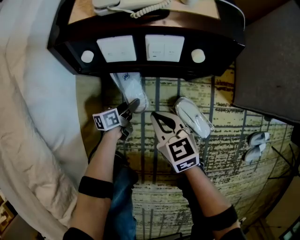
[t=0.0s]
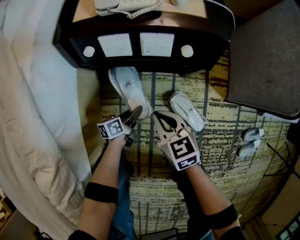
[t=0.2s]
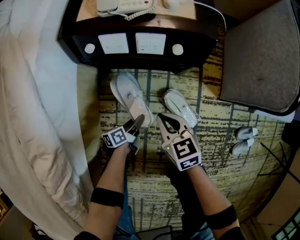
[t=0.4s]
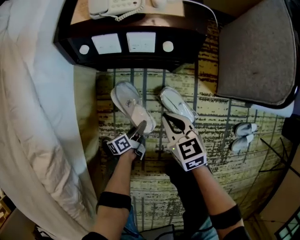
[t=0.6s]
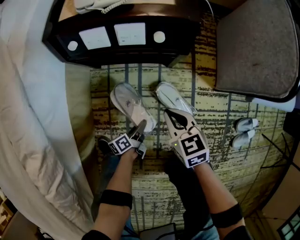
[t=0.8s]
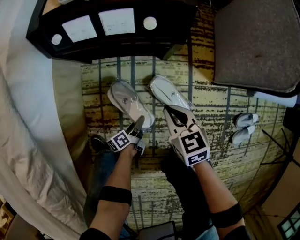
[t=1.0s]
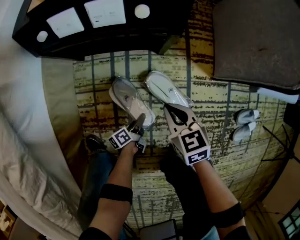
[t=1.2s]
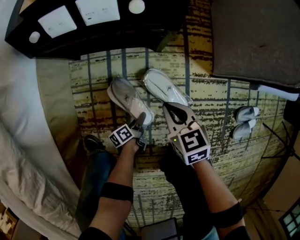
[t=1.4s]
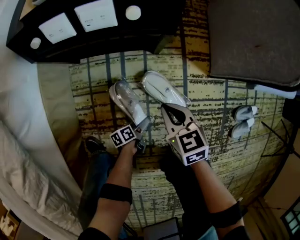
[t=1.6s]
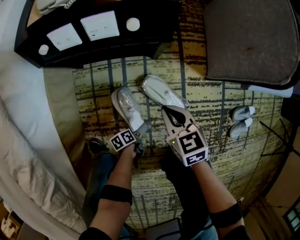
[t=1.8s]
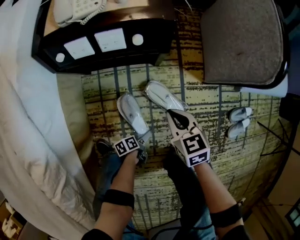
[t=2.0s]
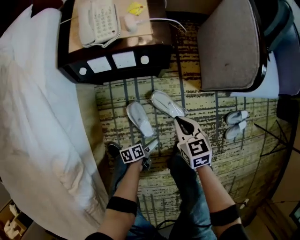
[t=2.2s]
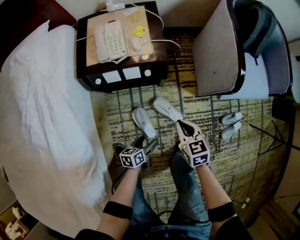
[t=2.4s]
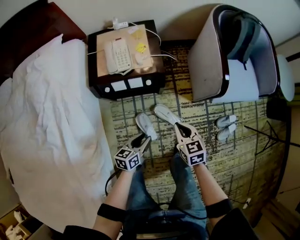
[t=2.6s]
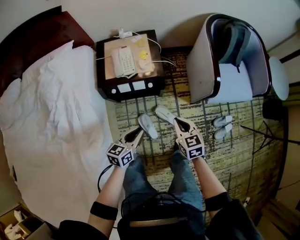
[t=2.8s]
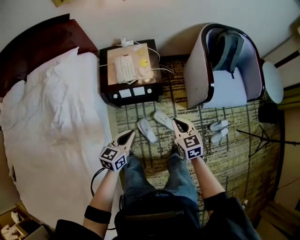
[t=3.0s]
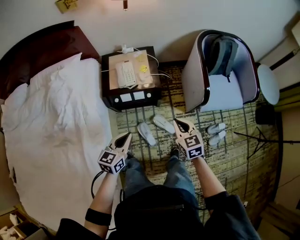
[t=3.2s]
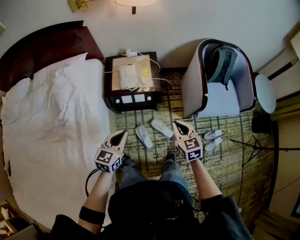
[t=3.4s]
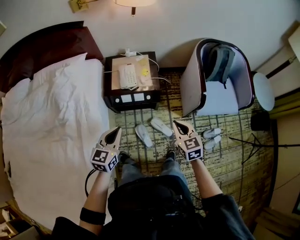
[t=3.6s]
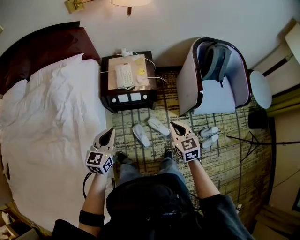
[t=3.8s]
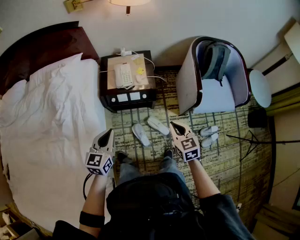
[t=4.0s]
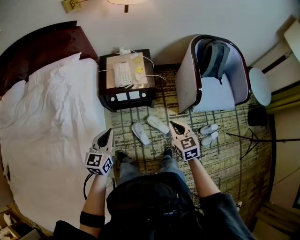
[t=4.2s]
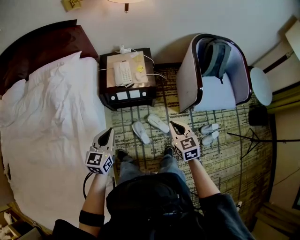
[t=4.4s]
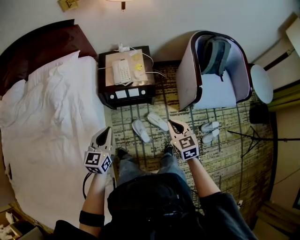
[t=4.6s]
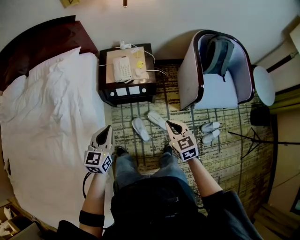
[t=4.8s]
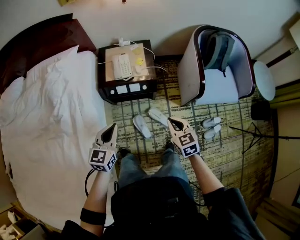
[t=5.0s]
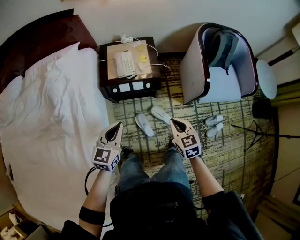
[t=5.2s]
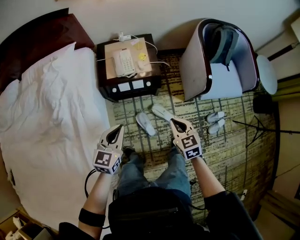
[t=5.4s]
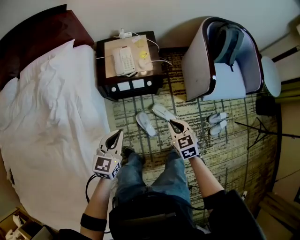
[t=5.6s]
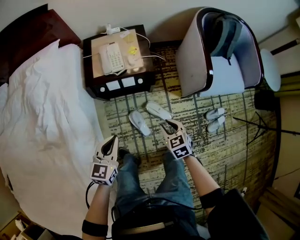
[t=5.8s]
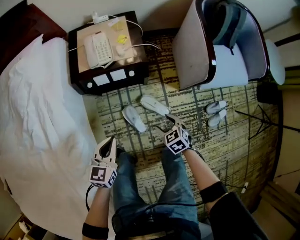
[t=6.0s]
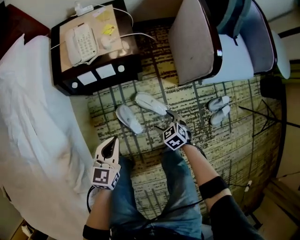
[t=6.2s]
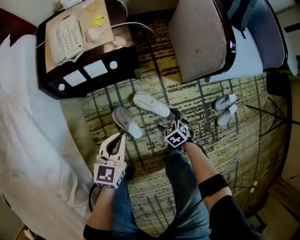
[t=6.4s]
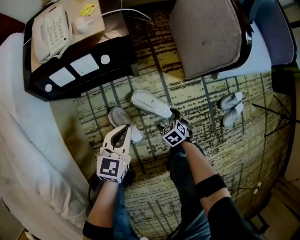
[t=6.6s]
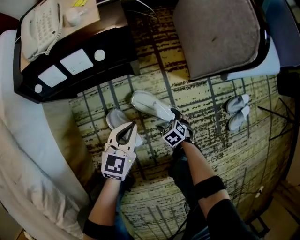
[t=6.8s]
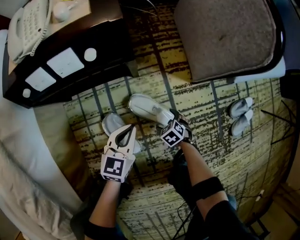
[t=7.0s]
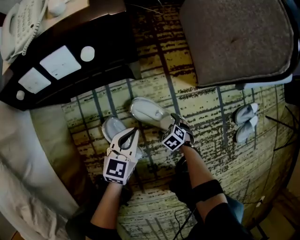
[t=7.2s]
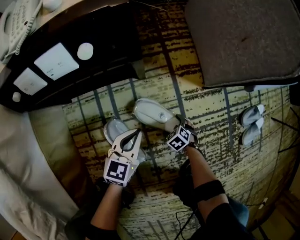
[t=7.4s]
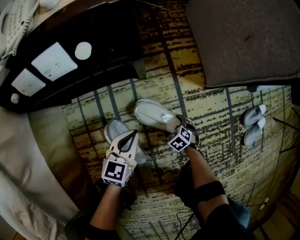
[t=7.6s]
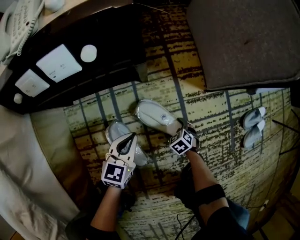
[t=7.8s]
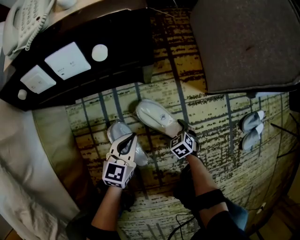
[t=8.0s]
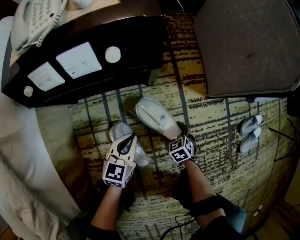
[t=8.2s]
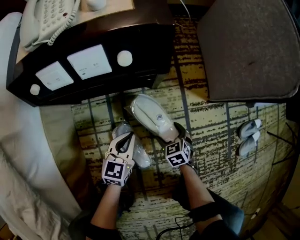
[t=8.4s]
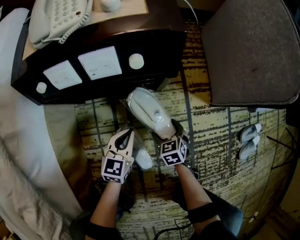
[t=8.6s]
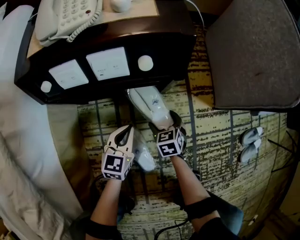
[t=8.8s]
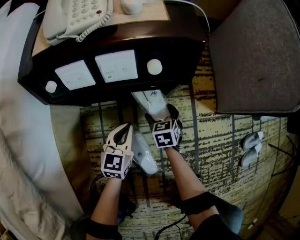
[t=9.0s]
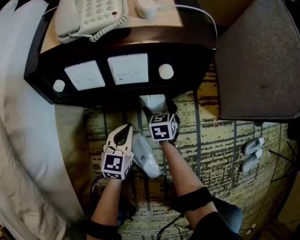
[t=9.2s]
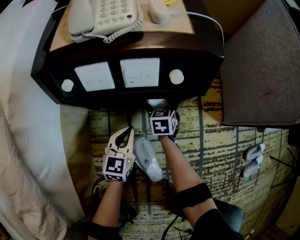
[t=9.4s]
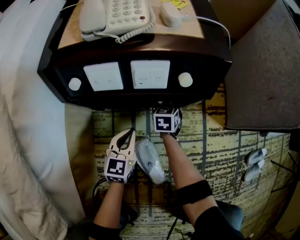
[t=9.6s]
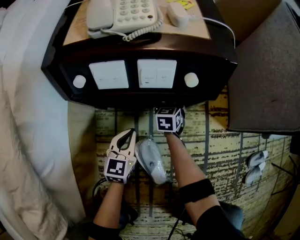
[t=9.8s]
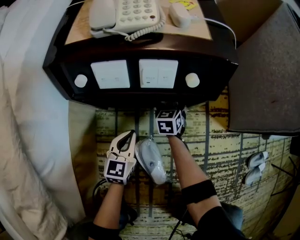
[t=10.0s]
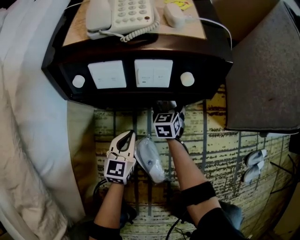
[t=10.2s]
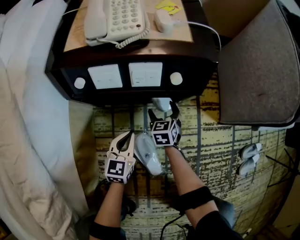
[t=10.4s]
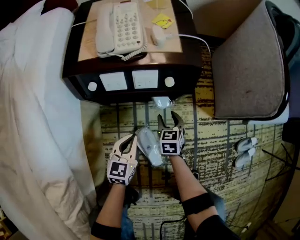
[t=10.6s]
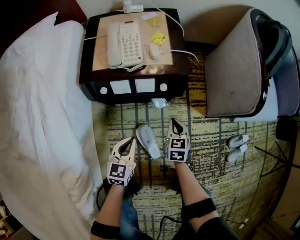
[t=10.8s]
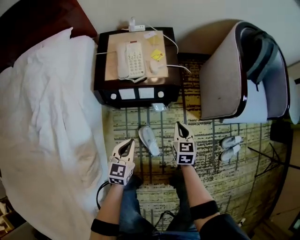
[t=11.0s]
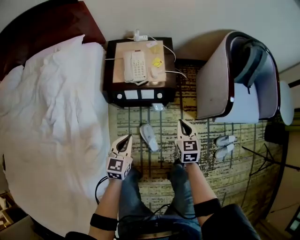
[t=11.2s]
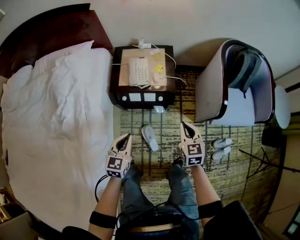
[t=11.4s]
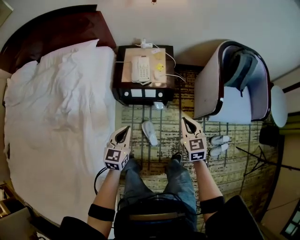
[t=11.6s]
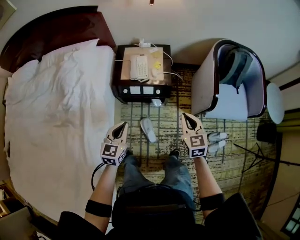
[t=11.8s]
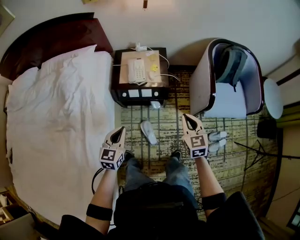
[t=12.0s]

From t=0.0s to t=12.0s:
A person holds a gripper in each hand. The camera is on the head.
From t=0.0s to t=1.6s: The right gripper moves to the right and backward, roughly 20 cm. The left gripper goes approximately 30 cm backward, to the right and downward, rotates about 30 degrees, and opens up.
From t=1.6s to t=3.0s: The two grippers go about 70 cm upward. The left gripper twists about 60 degrees clockwise, seen from behind, and closes up.
From t=3.0s to t=4.4s: The right gripper goes roughly 10 cm upward and backward. Meanwhile the left gripper heads upward and to the left, covering about 15 cm.
From t=4.4s to t=6.0s: The two grippers go roughly 30 cm downward. The right gripper turns by about 20 degrees, and opens.
From t=6.0s to t=7.6s: Both grippers travel together downward, about 60 cm. The right gripper opens.
From t=7.6s to t=9.0s: The right gripper ends up approximately 30 cm from where it was, and swivels about 30 degrees; the left gripper changes place by approximately 15 cm.
From t=9.0s to t=10.4s: The left gripper changes place by roughly 5 cm. Meanwhile the right gripper shifts about 5 cm to the left.
From t=10.4s to t=12.0s: Both grippers travel together upward, approximately 70 cm. The right gripper closes up.

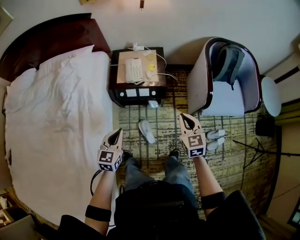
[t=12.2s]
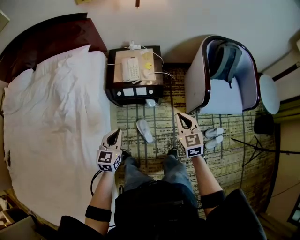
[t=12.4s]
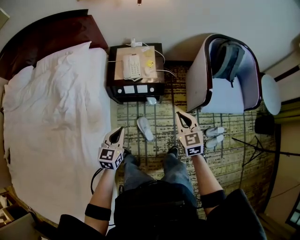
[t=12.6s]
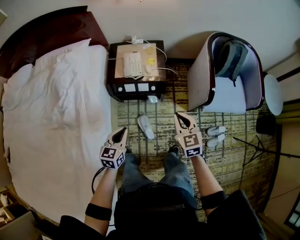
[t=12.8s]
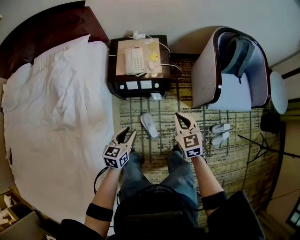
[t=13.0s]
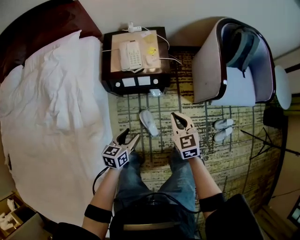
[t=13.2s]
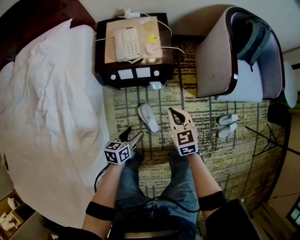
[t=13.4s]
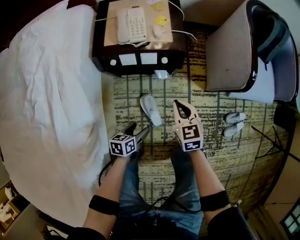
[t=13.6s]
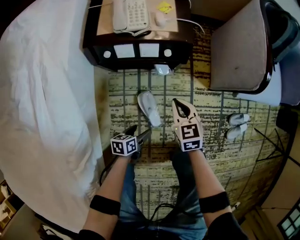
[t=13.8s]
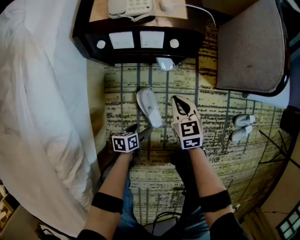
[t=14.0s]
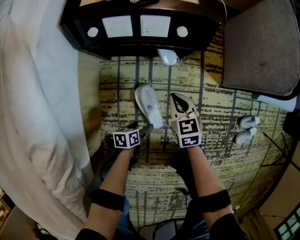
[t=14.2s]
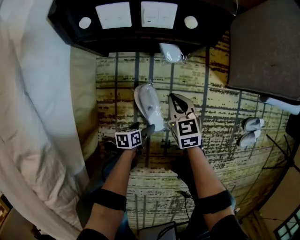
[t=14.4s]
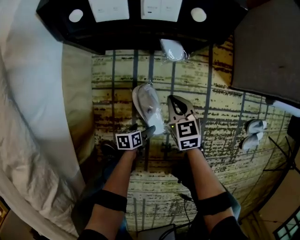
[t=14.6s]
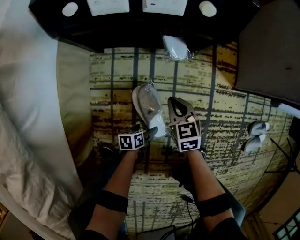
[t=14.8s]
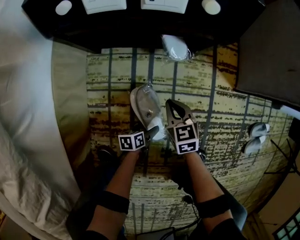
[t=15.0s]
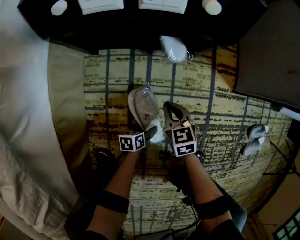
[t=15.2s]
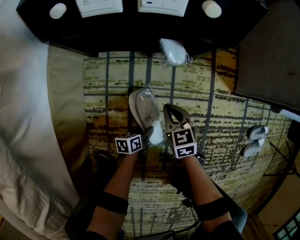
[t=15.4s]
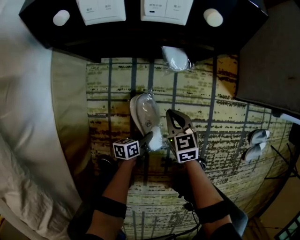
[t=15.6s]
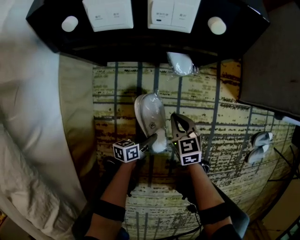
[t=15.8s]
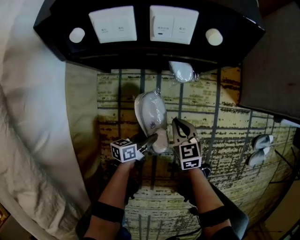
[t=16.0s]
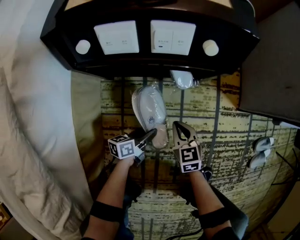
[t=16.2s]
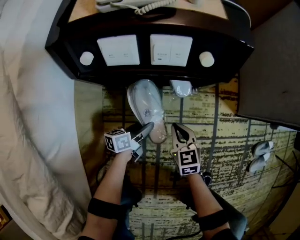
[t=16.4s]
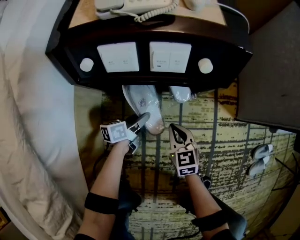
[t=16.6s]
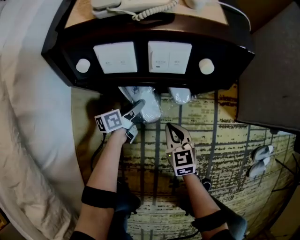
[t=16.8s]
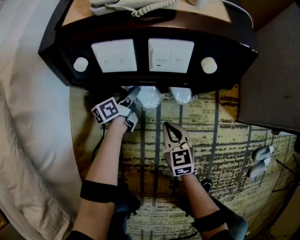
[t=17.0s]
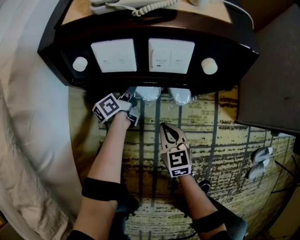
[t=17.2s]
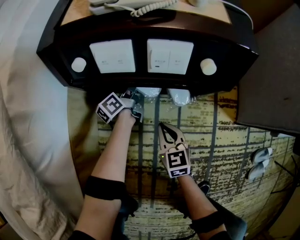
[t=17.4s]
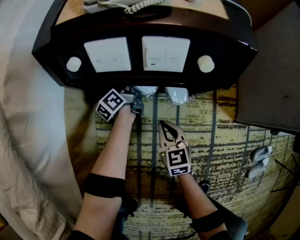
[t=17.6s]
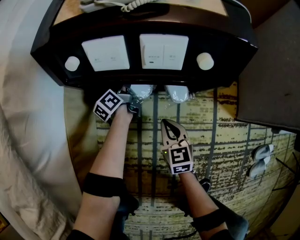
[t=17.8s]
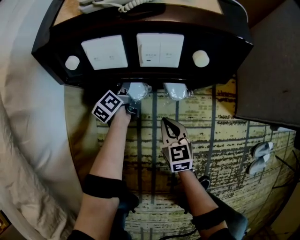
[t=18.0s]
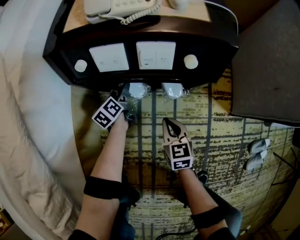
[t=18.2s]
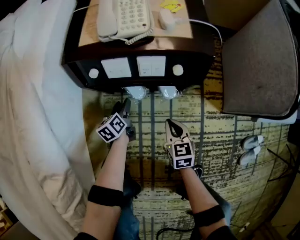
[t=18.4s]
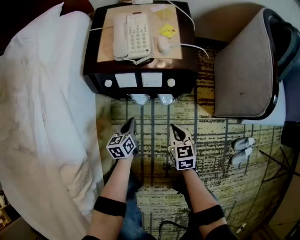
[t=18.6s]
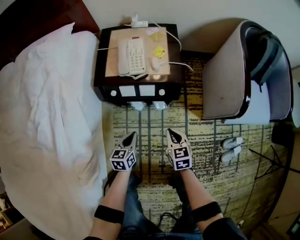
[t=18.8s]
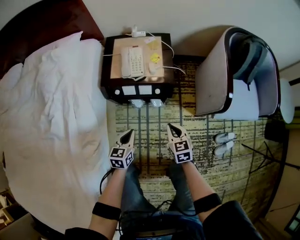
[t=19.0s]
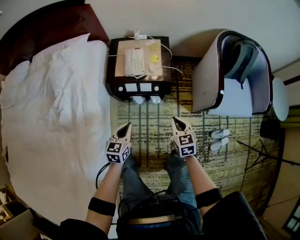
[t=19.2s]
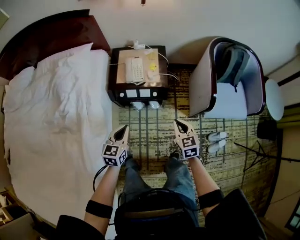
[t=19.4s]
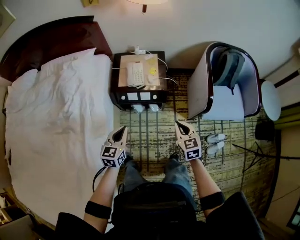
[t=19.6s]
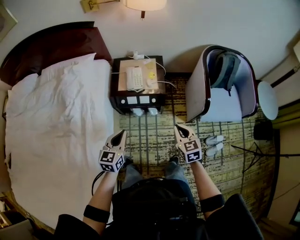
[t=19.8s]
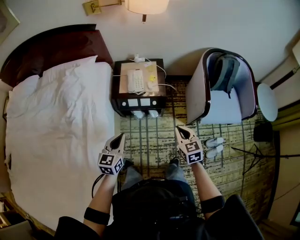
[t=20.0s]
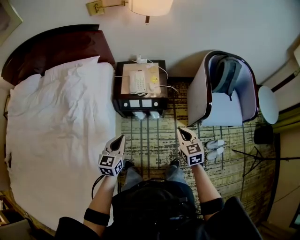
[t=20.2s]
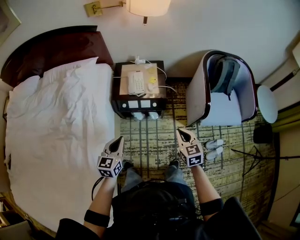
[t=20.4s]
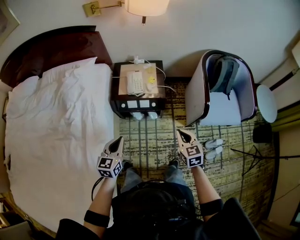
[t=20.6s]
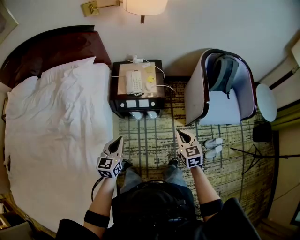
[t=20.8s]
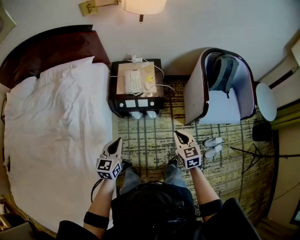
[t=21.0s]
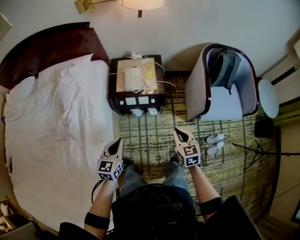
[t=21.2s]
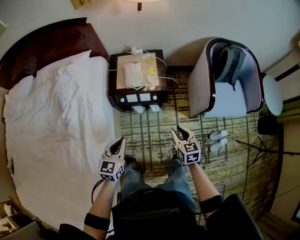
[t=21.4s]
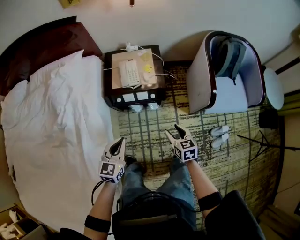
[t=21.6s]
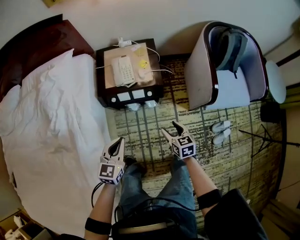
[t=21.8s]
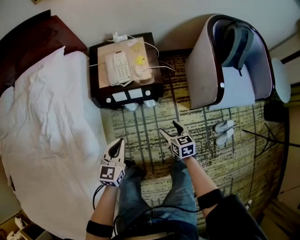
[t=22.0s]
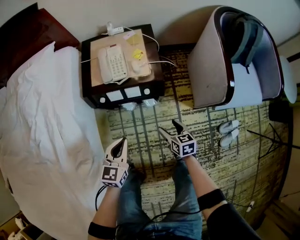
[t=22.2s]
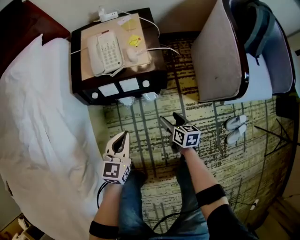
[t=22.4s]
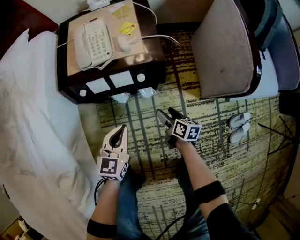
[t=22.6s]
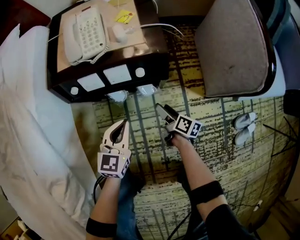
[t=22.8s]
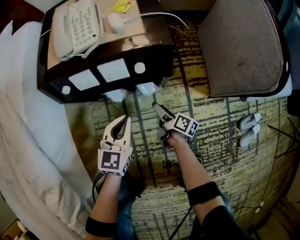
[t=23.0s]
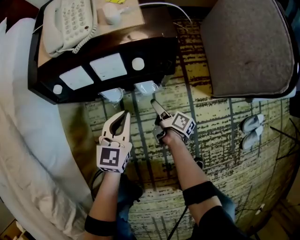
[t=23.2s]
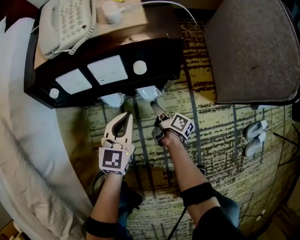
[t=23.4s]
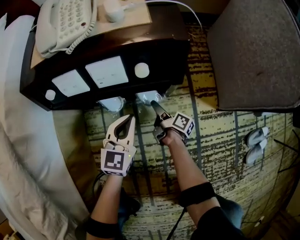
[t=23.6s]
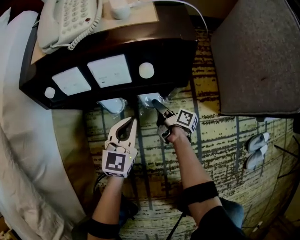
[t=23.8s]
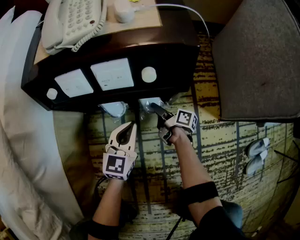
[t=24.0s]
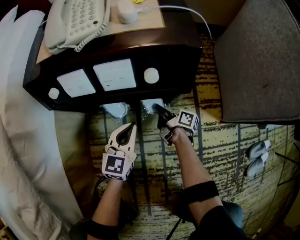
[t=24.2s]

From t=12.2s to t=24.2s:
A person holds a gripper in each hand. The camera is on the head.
From t=12.2s to t=13.8s: Both grippers move downward, about 50 cm. The left gripper turns by roughly 60 degrees, and opens its fingers.
From t=13.8s to t=15.2s: The grippers both shift downward by roughly 40 cm.
From t=15.2s to t=16.6s: The left gripper is displaced forward, upward and to the left by approximately 30 cm, turns by roughly 30 degrees, and closes. Meanwhile the right gripper shifts about 10 cm forward and upward.
From t=16.6s to t=18.2s: The left gripper is displaced forward and to the left by some 15 cm, changes its angle by some 40 degrees, and opens.
From t=18.2s to t=19.8s: The two grippers go about 70 cm upward. The left gripper rotates around the line of its fingers by about 50 degrees, clockwise from behind, and closes up.
From t=19.8s to t=21.2s: There are only small adjustments of the grippers.
From t=21.2s to t=22.6s: The two grippers go about 50 cm downward. The right gripper rolls clockwise, seen from behind, by about 50 degrees, and opens up.
From t=22.6s to t=24.2s: The right gripper heads downward and forward, covering about 30 cm, turns by approximately 40 degrees, and closes; the left gripper shifts about 25 cm downward.
